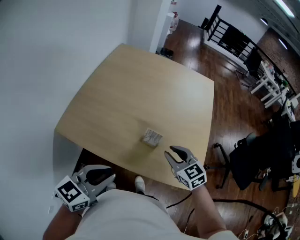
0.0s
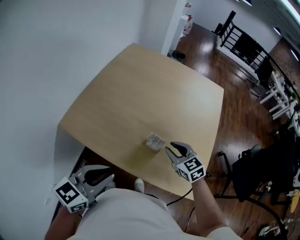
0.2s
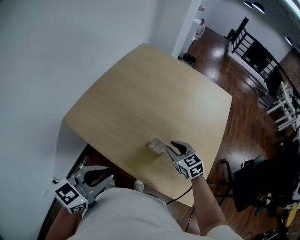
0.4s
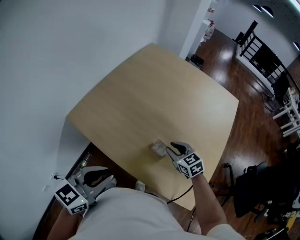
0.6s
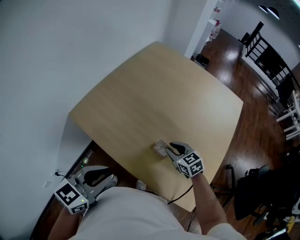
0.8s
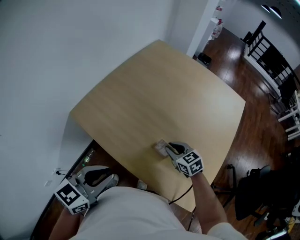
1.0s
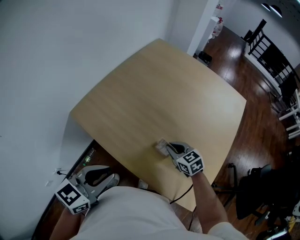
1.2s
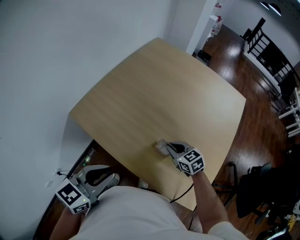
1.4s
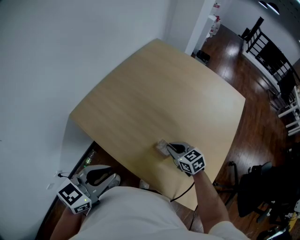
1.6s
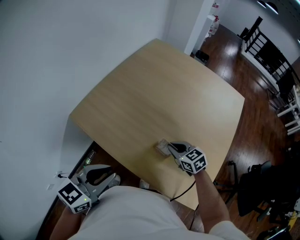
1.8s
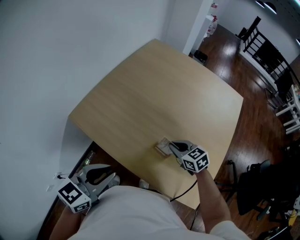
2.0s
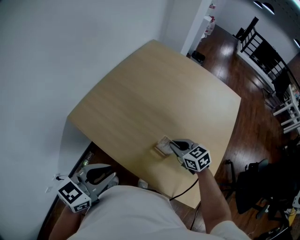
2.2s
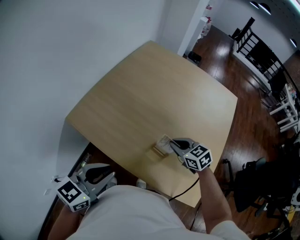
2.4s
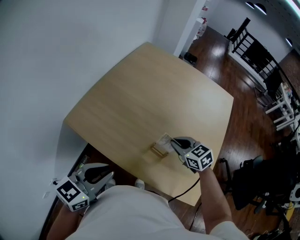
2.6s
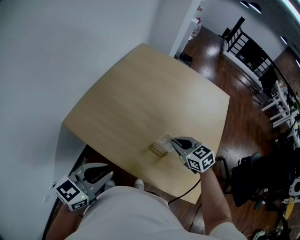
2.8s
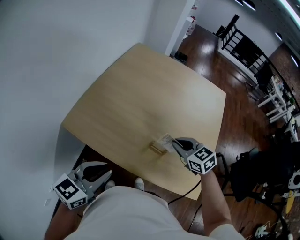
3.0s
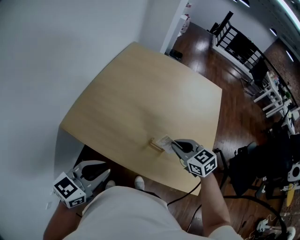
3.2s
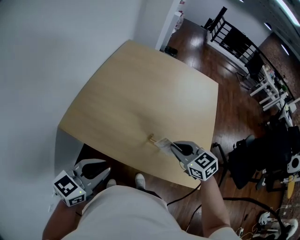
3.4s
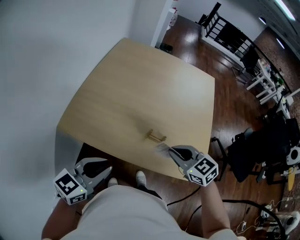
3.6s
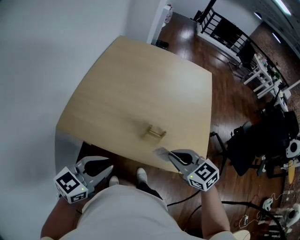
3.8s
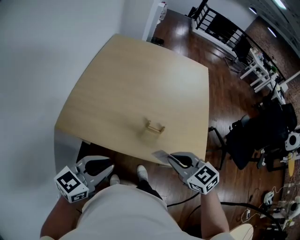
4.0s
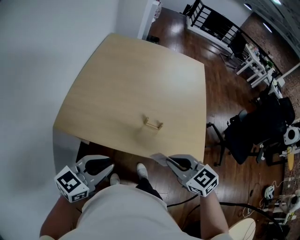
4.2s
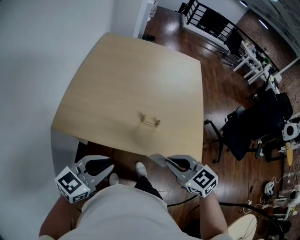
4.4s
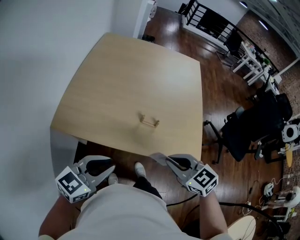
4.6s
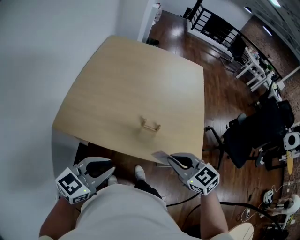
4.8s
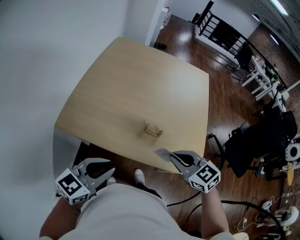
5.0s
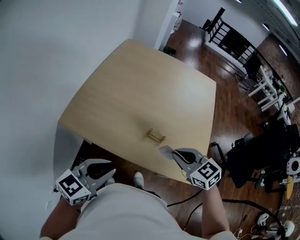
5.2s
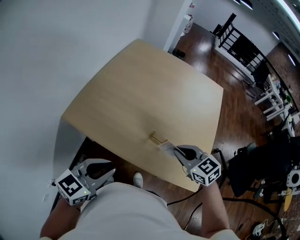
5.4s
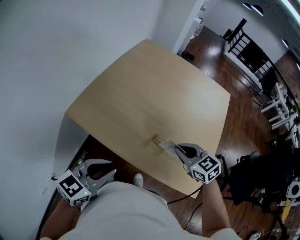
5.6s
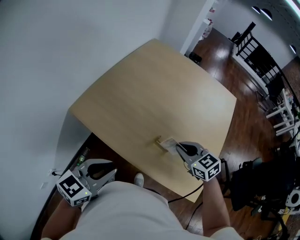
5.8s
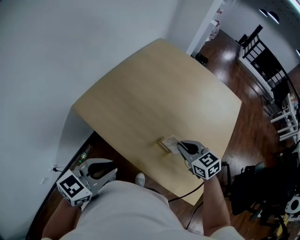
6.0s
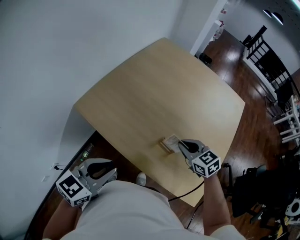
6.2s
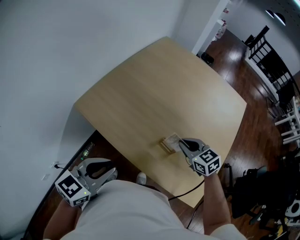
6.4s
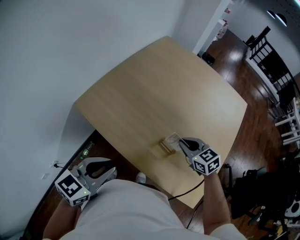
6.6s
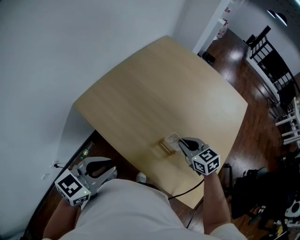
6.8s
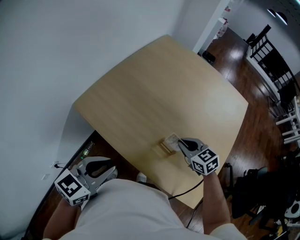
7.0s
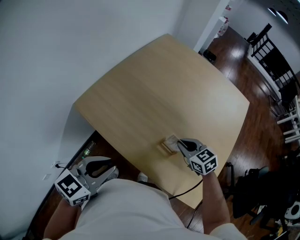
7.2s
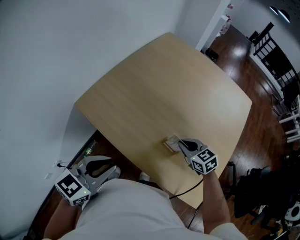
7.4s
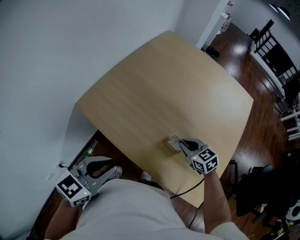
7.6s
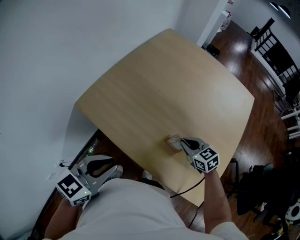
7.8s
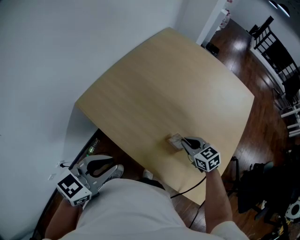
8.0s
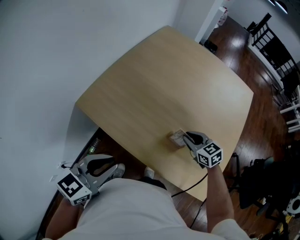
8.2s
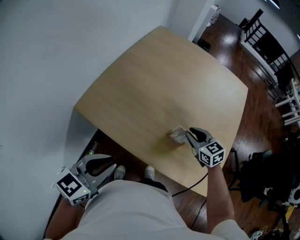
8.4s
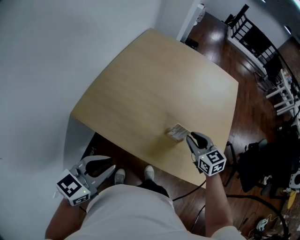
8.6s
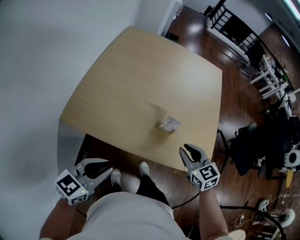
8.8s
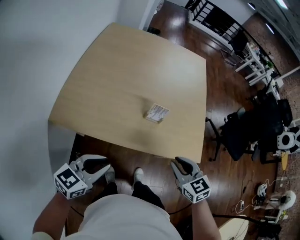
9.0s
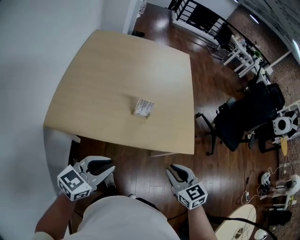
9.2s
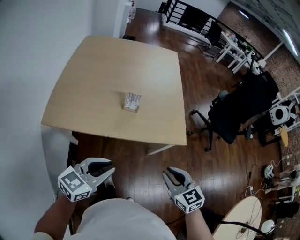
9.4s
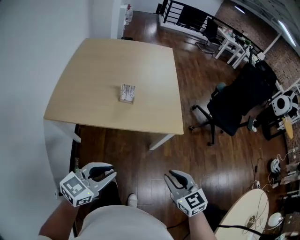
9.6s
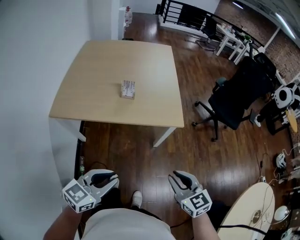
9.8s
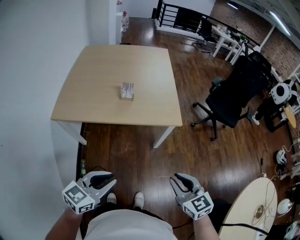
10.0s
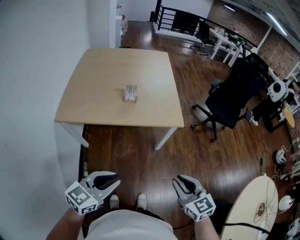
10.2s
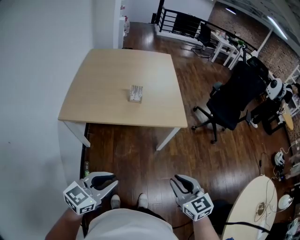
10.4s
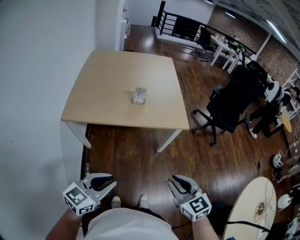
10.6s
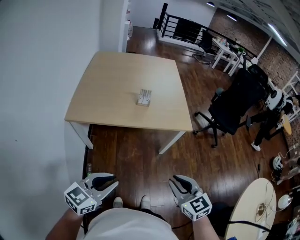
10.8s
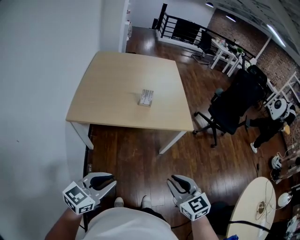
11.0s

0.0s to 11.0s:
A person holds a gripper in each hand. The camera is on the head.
0.0s to 1.6s: The right gripper is displaced downward and forward by some 15 cm, changes its angle by approximately 20 degrees, and closes its fingers.
1.6s to 3.2s: The left gripper goes some 5 cm to the left, while the right gripper is displaced upward by approximately 15 cm.
3.2s to 4.8s: The left gripper ends up roughly 5 cm from where it was. The right gripper heads backward, covering roughly 15 cm.
4.8s to 6.2s: The left gripper changes its angle by some 30 degrees. Meanwhile the right gripper moves forward and downward, roughly 20 cm.
6.2s to 7.8s: The right gripper travels downward by approximately 5 cm.
7.8s to 9.4s: The right gripper changes place by roughly 50 cm, and swivels about 40 degrees. Meanwhile the left gripper moves roughly 25 cm, and turns by approximately 40 degrees.
9.4s to 11.0s: Both grippers move backward, about 25 cm.

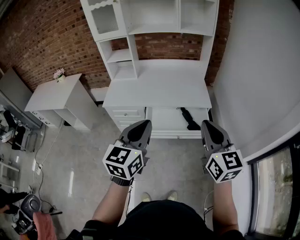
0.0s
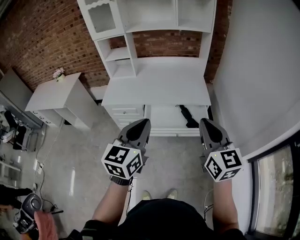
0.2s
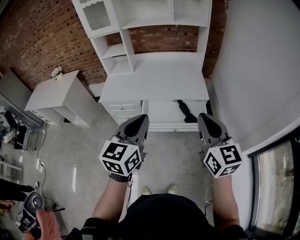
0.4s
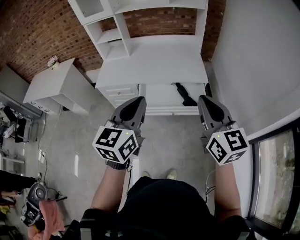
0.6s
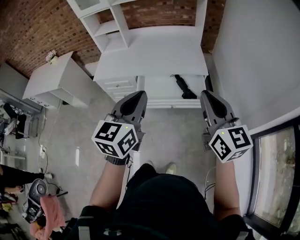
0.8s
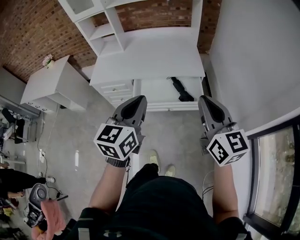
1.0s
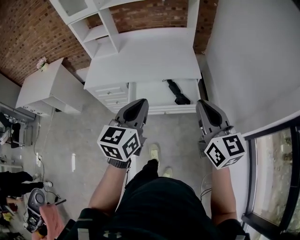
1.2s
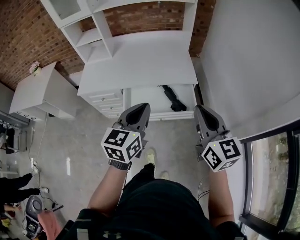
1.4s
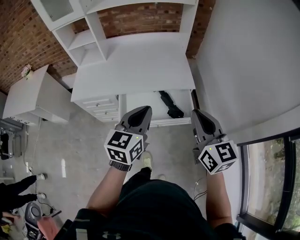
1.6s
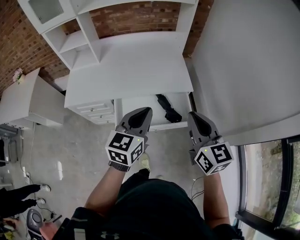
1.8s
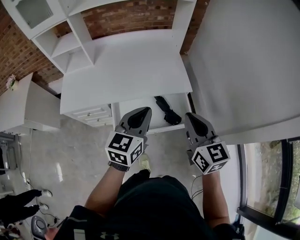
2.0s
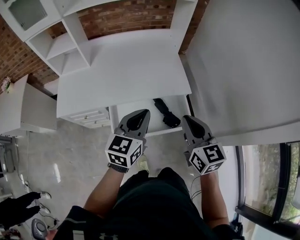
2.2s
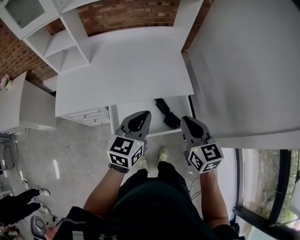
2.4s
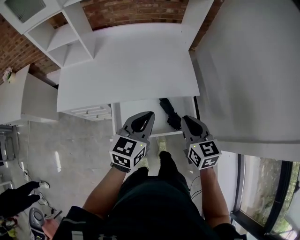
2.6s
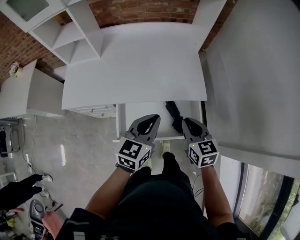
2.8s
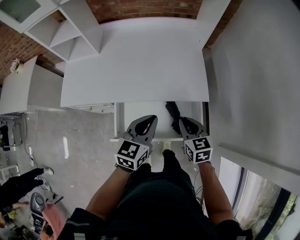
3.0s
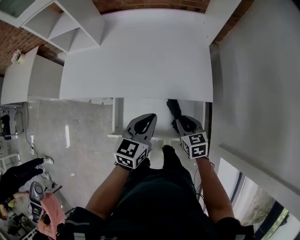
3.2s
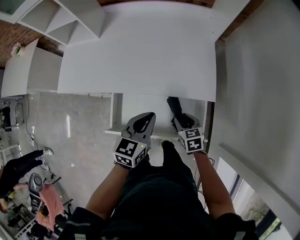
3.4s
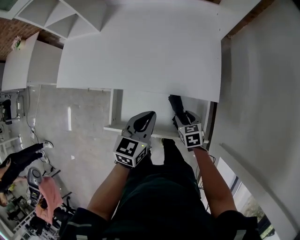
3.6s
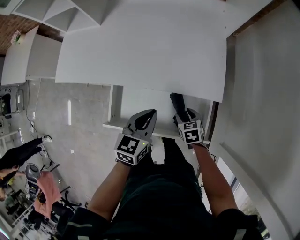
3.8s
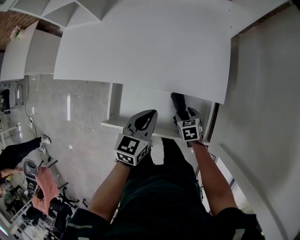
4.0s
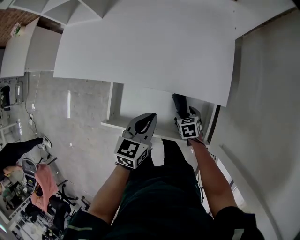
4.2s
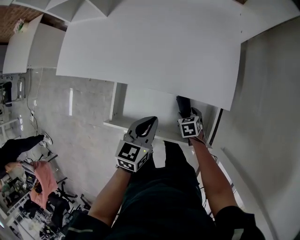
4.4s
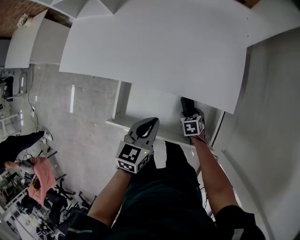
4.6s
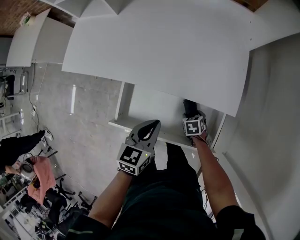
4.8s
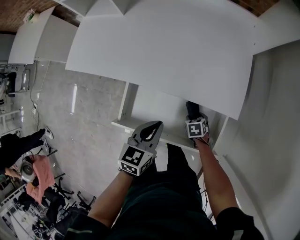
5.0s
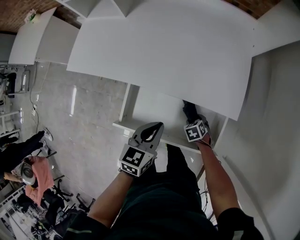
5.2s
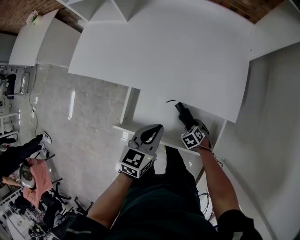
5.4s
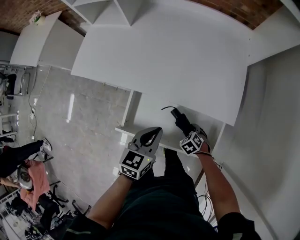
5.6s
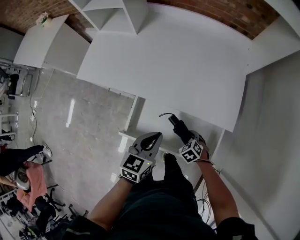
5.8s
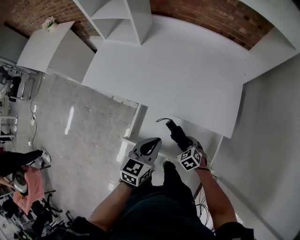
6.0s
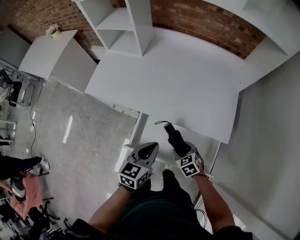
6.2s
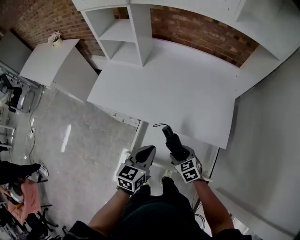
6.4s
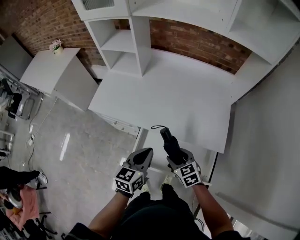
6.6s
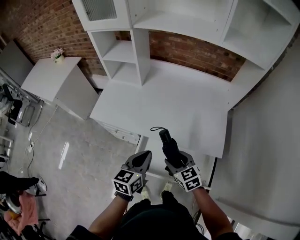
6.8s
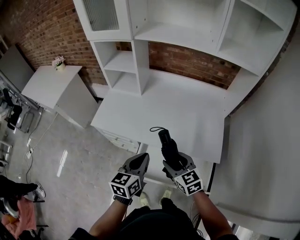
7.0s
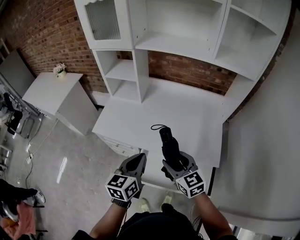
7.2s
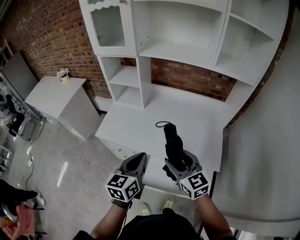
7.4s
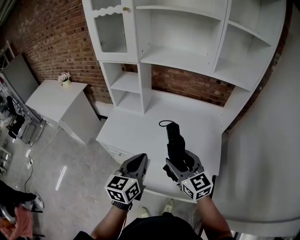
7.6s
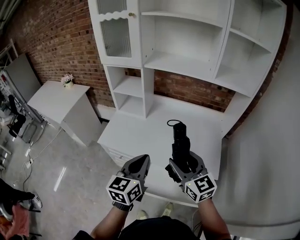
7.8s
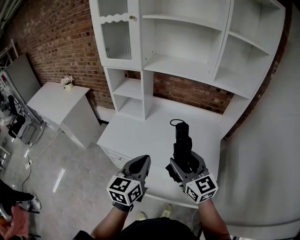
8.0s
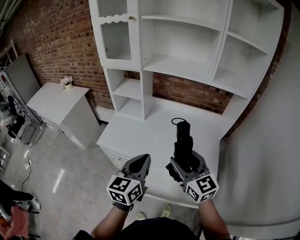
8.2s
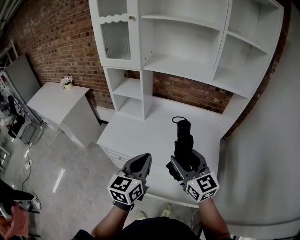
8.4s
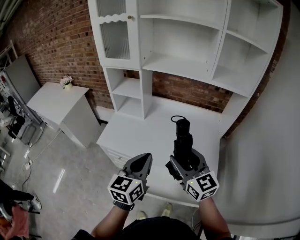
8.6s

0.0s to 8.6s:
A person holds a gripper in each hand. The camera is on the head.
0.0s to 1.4s: The two grippers go some 15 cm to the right, forward and downward.
1.4s to 2.8s: Both grippers travel together forward and downward, about 30 cm. The right gripper turns by roughly 30 degrees.
2.8s to 4.4s: The right gripper shifts about 35 cm downward, tips its fingers downward by roughly 40 degrees, and opens its fingers. The left gripper moves downward, some 15 cm, and rotates roughly 30 degrees.
4.4s to 5.8s: The left gripper ends up some 10 cm from where it was, while the right gripper changes place by roughly 10 cm, and swivels about 30 degrees.
5.8s to 7.2s: The right gripper travels upward by some 40 cm, and angles its fingers upward, by approximately 50 degrees. The left gripper is displaced upward and to the left by some 25 cm.
7.2s to 8.6s: Both grippers travel together upward, about 10 cm.

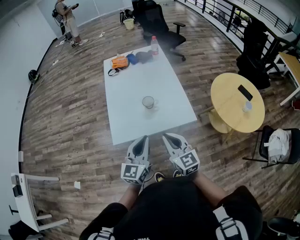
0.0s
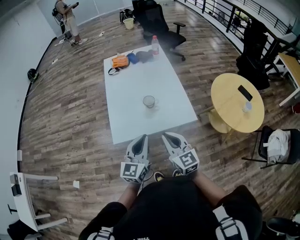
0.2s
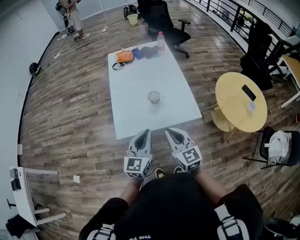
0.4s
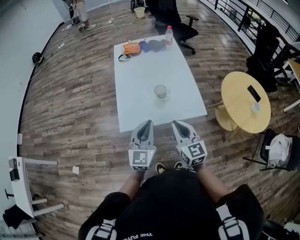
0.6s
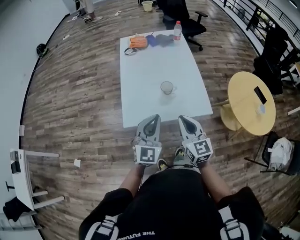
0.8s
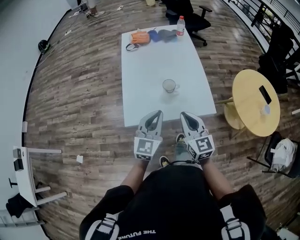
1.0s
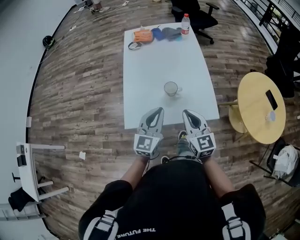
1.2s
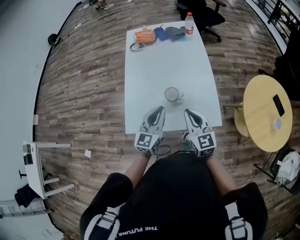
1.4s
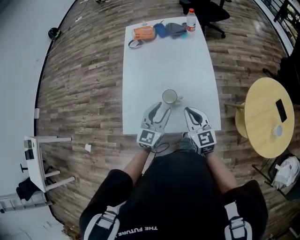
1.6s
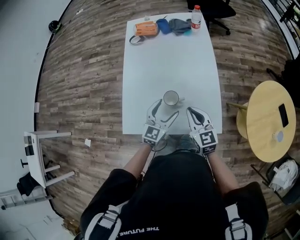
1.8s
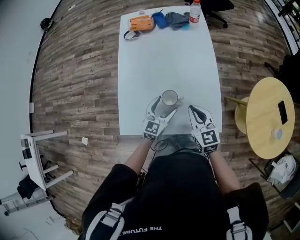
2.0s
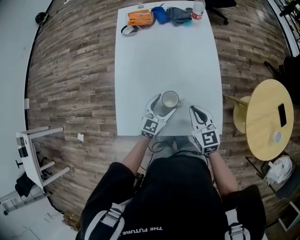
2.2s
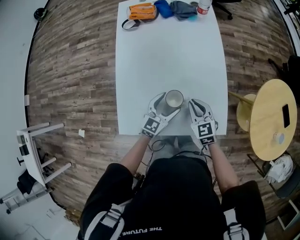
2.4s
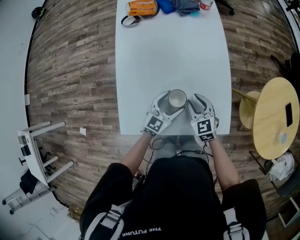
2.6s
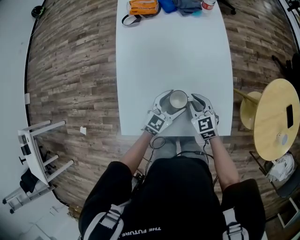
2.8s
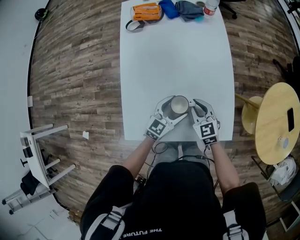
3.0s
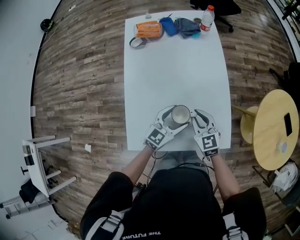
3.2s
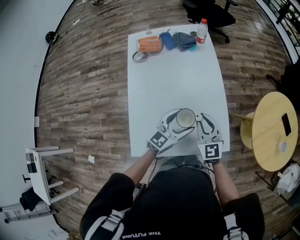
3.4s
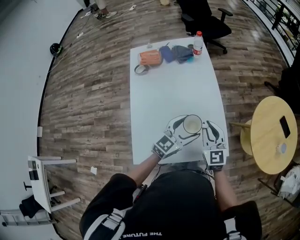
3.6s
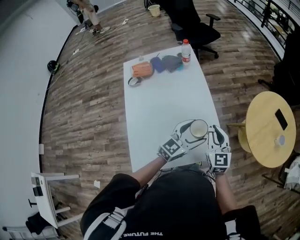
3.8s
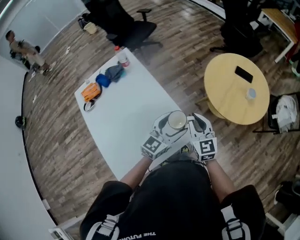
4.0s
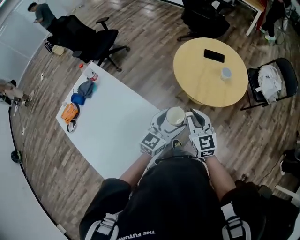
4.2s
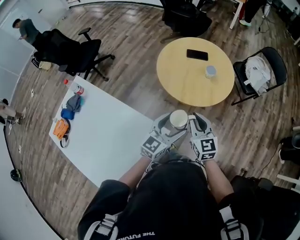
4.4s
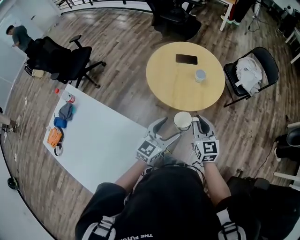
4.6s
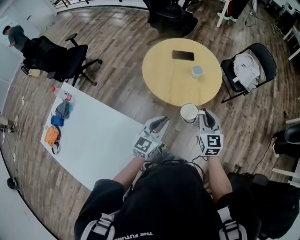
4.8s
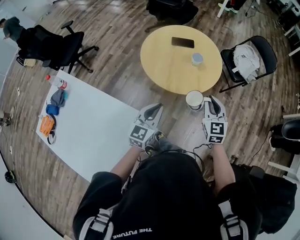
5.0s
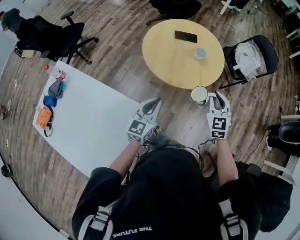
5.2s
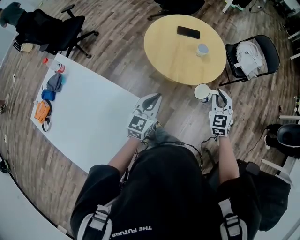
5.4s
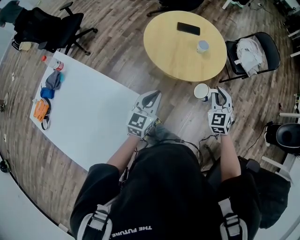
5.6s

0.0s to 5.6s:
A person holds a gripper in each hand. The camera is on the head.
0.0s to 1.4s: The two grippers go some 20 cm forward.
1.4s to 2.8s: The grippers both shift downward and forward by roughly 25 cm. The left gripper changes its angle by approximately 30 degrees, and opens its fingers. The right gripper changes its angle by roughly 20 degrees.
2.8s to 4.2s: The right gripper moves about 40 cm, and changes its angle by roughly 60 degrees. The left gripper shifts by about 40 cm, and swivels approximately 50 degrees.
4.2s to 5.6s: The left gripper travels to the right and back again, roughly 10 cm each way, and closes up. The right gripper travels to the right and forward by some 25 cm, and turns by approximately 40 degrees.
